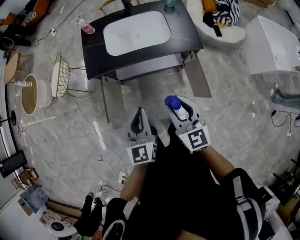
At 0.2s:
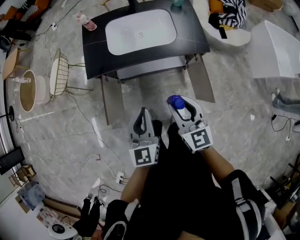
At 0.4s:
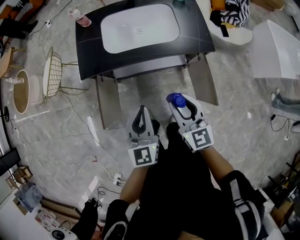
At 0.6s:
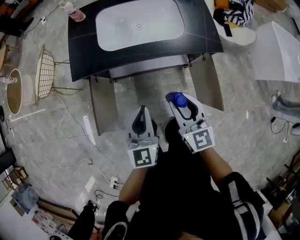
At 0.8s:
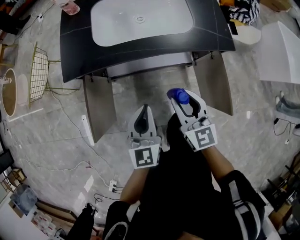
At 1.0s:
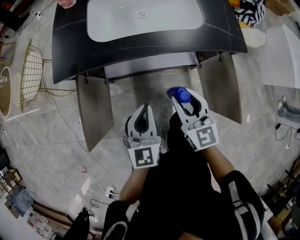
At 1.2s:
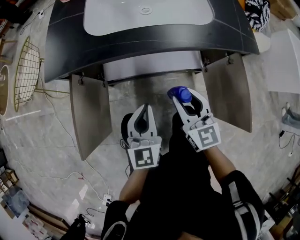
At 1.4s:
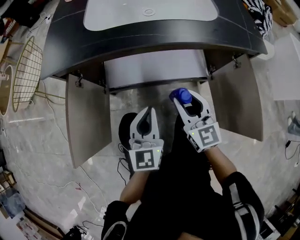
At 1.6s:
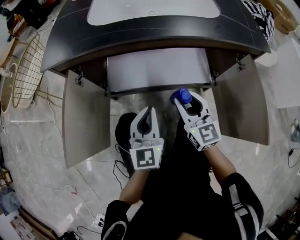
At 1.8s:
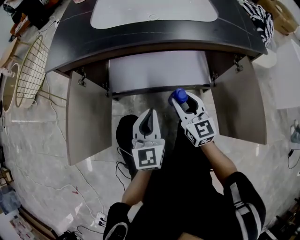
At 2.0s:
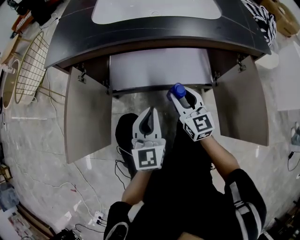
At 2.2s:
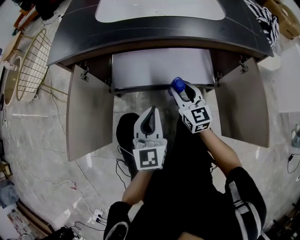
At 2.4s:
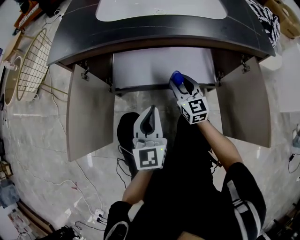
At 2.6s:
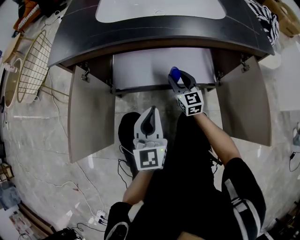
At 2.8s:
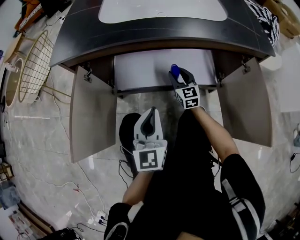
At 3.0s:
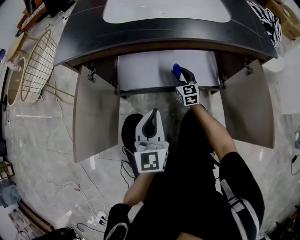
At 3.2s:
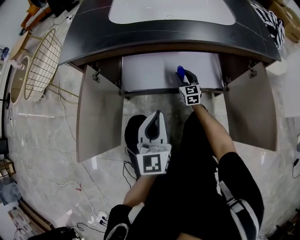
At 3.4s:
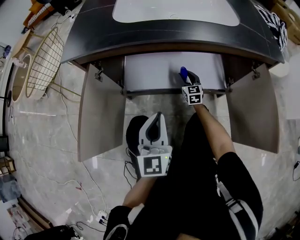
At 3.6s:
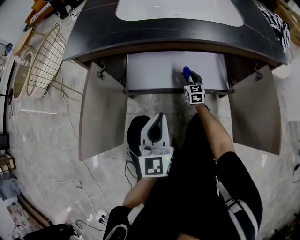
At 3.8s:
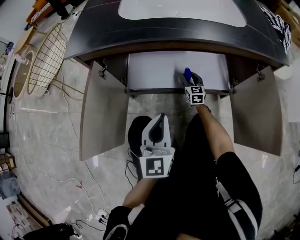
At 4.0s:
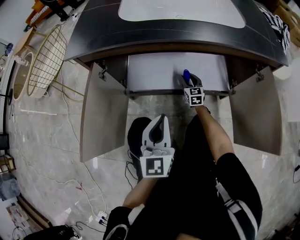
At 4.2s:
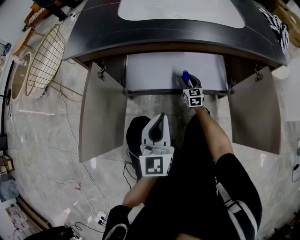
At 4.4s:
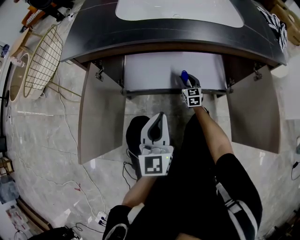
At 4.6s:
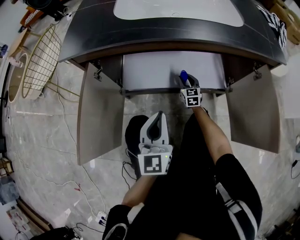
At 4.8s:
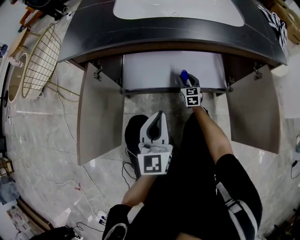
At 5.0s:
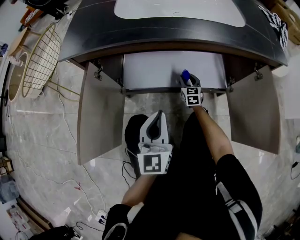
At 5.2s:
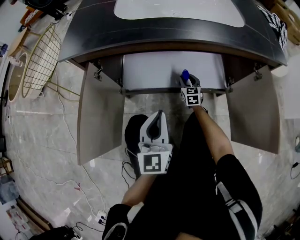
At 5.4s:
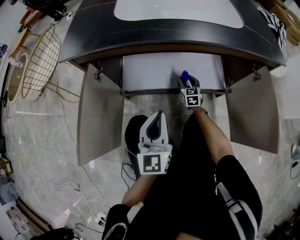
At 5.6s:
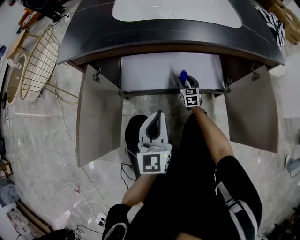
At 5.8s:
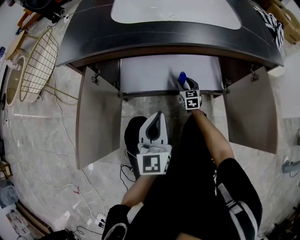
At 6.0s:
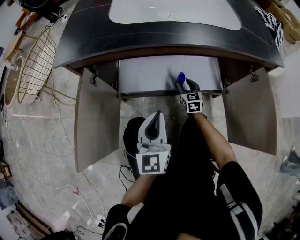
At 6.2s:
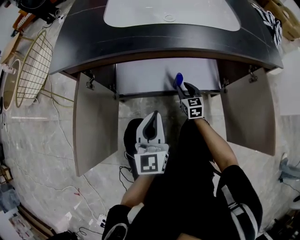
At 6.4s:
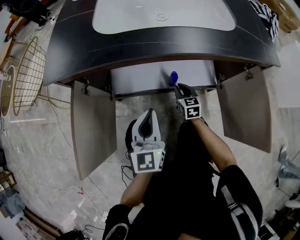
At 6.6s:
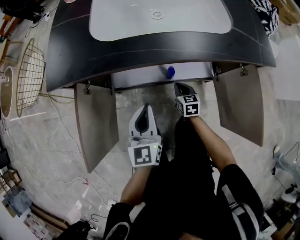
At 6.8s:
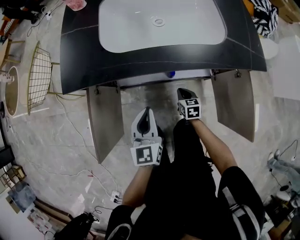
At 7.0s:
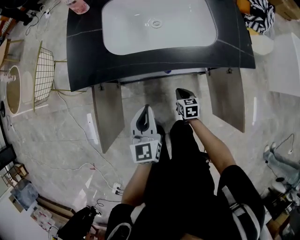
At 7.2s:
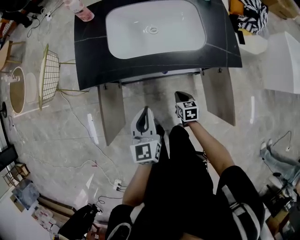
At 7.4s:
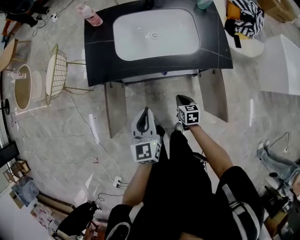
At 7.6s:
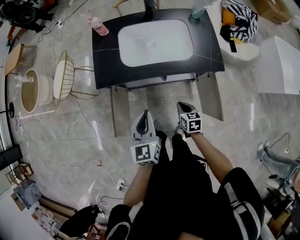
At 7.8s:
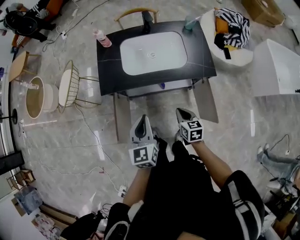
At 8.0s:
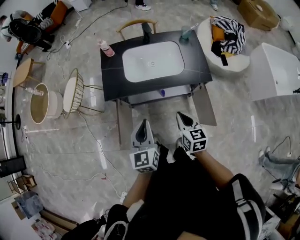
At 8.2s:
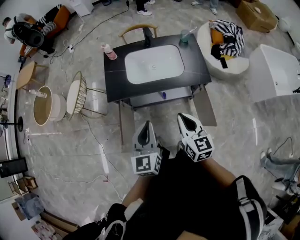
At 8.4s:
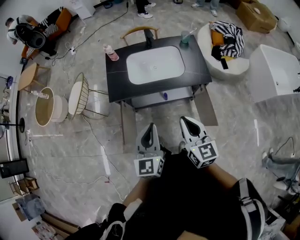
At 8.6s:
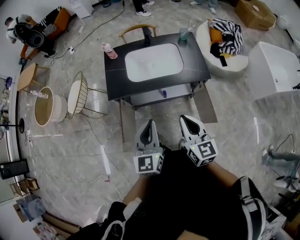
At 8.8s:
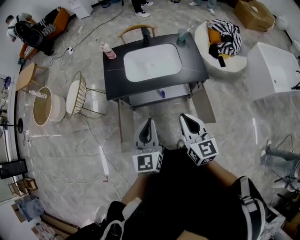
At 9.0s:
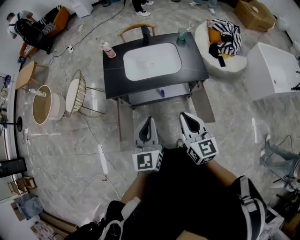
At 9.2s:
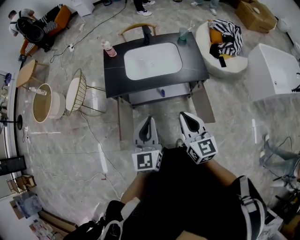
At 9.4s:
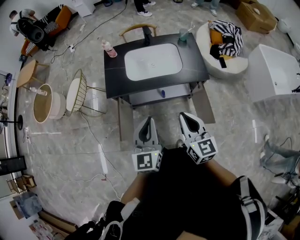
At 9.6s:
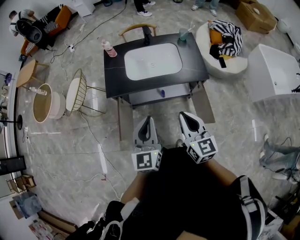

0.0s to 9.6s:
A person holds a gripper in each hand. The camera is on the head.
0.0s to 1.6s: Both grippers travel together downward, approximately 50 cm.
1.6s to 3.2s: The right gripper is displaced downward and forward by approximately 25 cm.
3.2s to 4.8s: The right gripper travels downward by some 5 cm.
4.8s to 6.4s: The right gripper goes roughly 10 cm backward and upward, and closes up.
6.4s to 8.0s: Both grippers move upward, some 50 cm.
8.0s to 9.6s: The left gripper shifts about 10 cm upward and backward. Meanwhile the right gripper goes about 15 cm upward and backward.

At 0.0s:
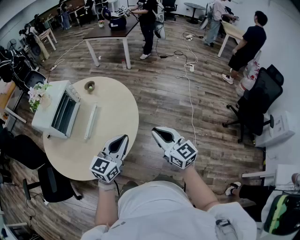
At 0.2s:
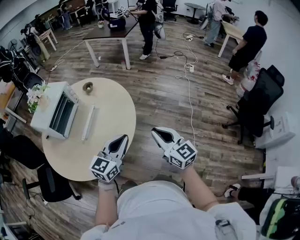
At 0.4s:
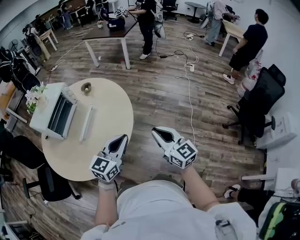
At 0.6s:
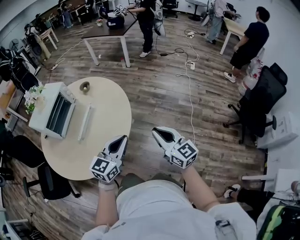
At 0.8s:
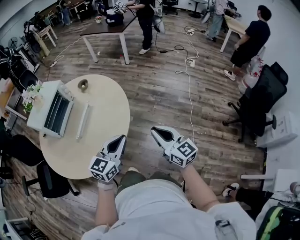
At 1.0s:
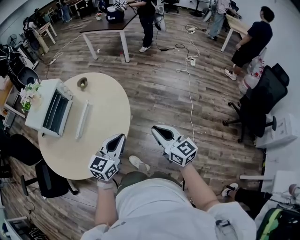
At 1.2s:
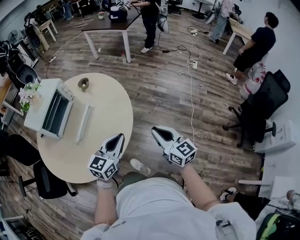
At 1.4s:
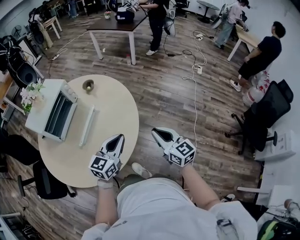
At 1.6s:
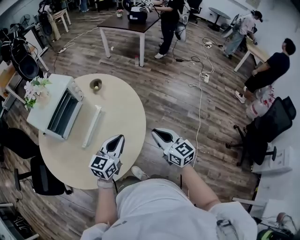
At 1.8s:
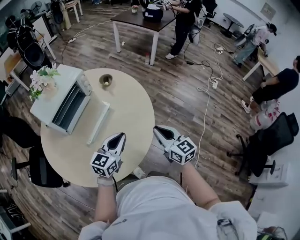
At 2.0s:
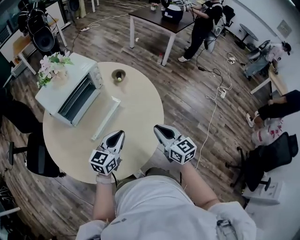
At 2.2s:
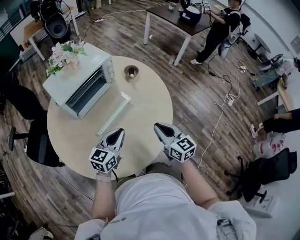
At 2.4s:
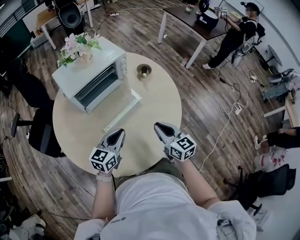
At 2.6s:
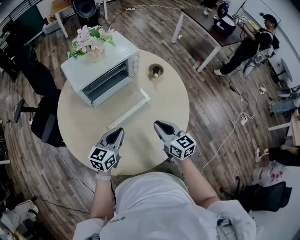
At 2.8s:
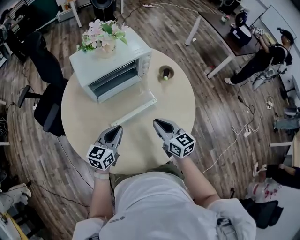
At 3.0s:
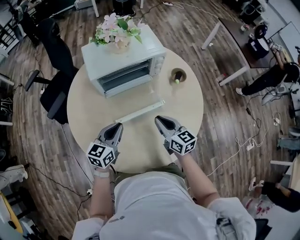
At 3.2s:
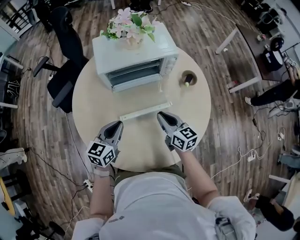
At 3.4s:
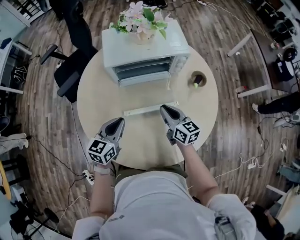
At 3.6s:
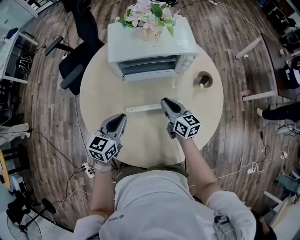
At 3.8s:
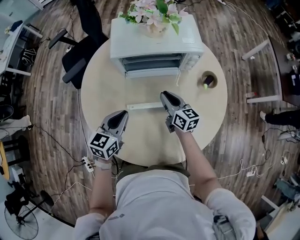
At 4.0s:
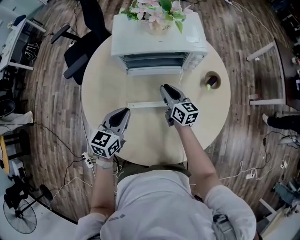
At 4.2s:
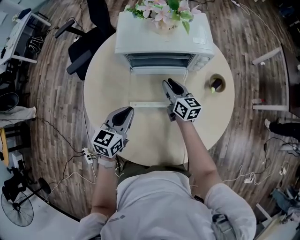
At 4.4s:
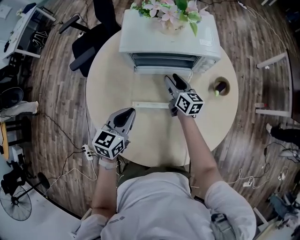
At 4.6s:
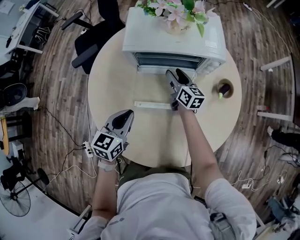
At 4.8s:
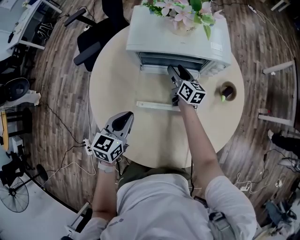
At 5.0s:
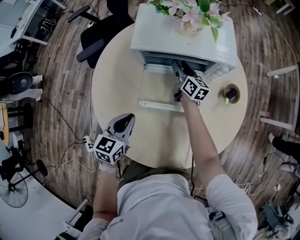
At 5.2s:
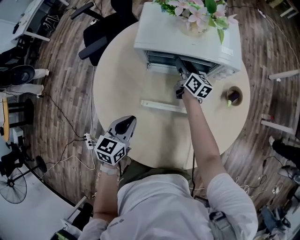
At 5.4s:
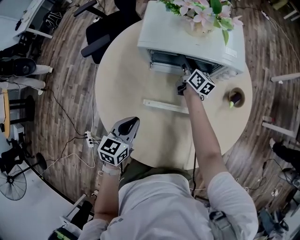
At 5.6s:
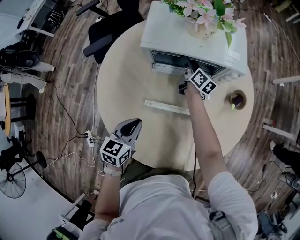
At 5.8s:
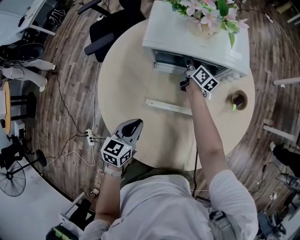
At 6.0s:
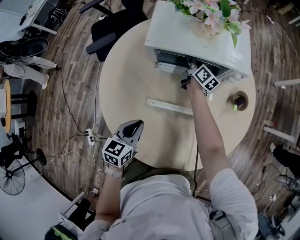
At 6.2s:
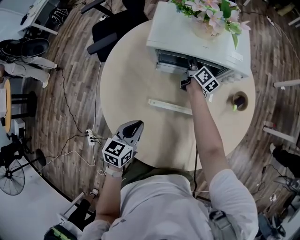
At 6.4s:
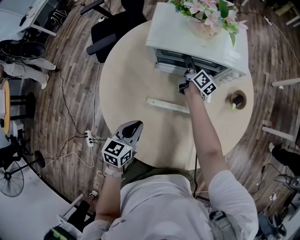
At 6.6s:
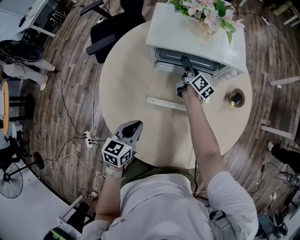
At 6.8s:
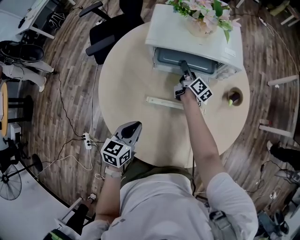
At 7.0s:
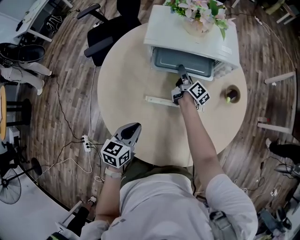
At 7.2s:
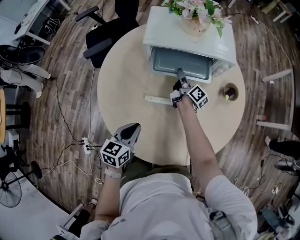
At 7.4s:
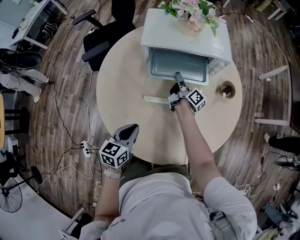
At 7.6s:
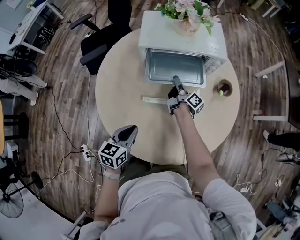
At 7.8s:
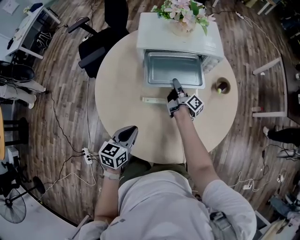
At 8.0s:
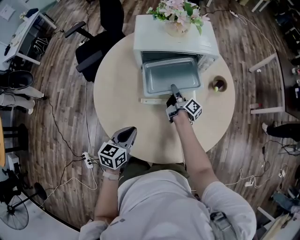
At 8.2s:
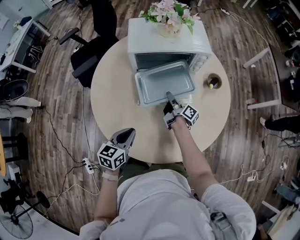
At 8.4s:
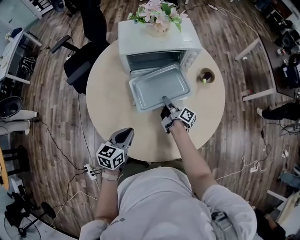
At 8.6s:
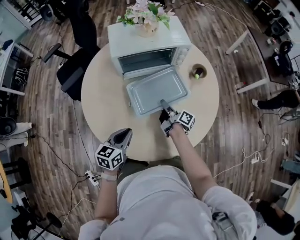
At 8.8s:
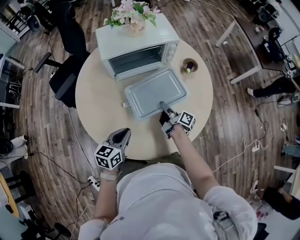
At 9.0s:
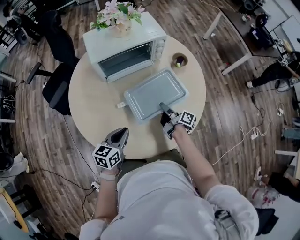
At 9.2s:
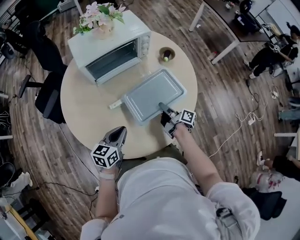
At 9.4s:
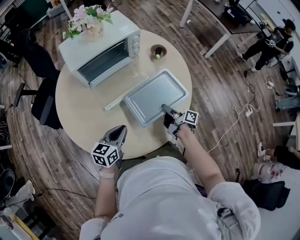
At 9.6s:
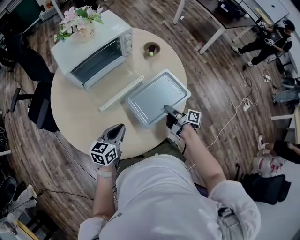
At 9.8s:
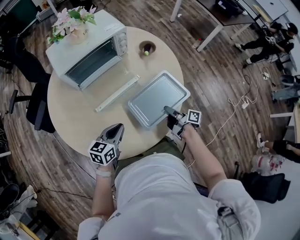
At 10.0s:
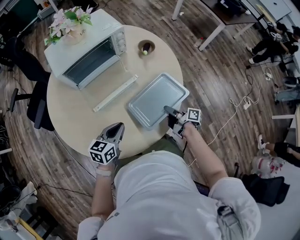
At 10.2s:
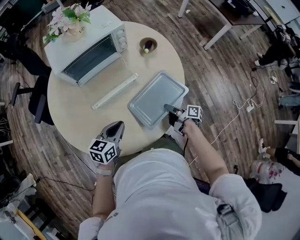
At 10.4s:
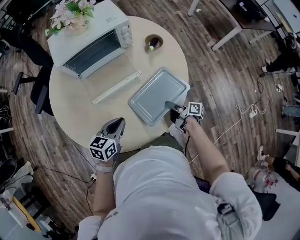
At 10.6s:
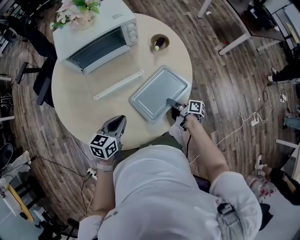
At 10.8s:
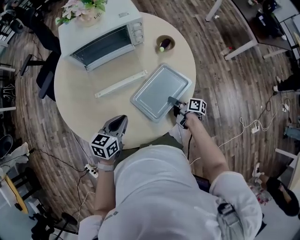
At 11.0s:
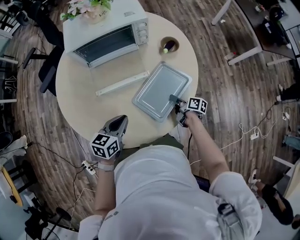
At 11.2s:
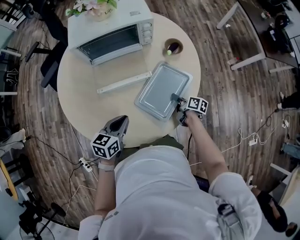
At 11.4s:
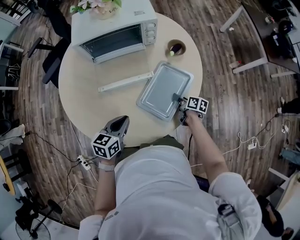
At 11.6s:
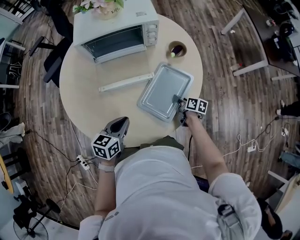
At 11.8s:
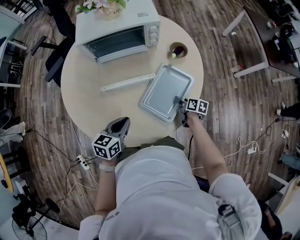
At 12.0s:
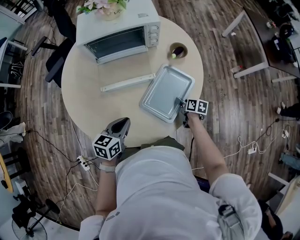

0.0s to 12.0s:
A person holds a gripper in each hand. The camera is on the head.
0.0s to 1.6s: The left gripper is displaced forward and downward by some 15 cm. Meanwhile the right gripper is displaced forward by approximately 15 cm.
1.6s to 3.0s: The left gripper changes place by about 25 cm, and turns by approximately 50 degrees. Meanwhile the right gripper ends up approximately 35 cm from where it was, and turns by approximately 50 degrees.
3.0s to 4.4s: The left gripper rotates roughly 20 degrees, while the right gripper shifts approximately 20 cm forward, and opens up.
4.4s to 6.0s: The right gripper travels forward by some 15 cm, and swivels some 20 degrees, while the left gripper ends up about 10 cm from where it was.
6.0s to 7.6s: The left gripper heads backward, covering roughly 5 cm. The right gripper is displaced backward by about 15 cm, changes its angle by about 30 degrees, and closes.
7.6s to 9.0s: The left gripper turns by some 30 degrees; the right gripper goes about 25 cm backward and to the right.
9.0s to 10.4s: The right gripper is displaced to the right and downward by approximately 20 cm. Meanwhile the left gripper moves to the right, approximately 10 cm.
10.4s to 12.0s: The right gripper travels forward, downward and to the right by roughly 10 cm, and points its fingers some 30 degrees further downward.

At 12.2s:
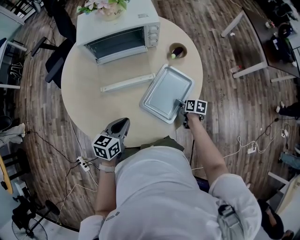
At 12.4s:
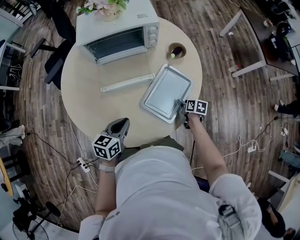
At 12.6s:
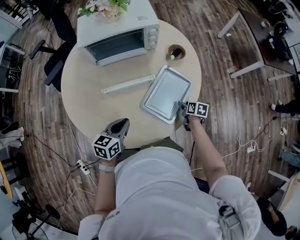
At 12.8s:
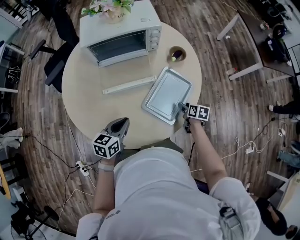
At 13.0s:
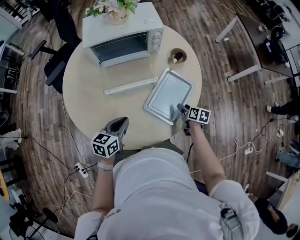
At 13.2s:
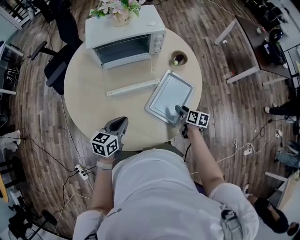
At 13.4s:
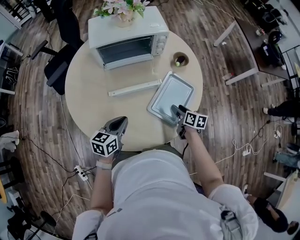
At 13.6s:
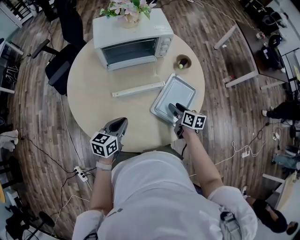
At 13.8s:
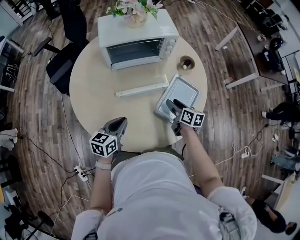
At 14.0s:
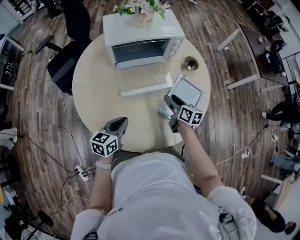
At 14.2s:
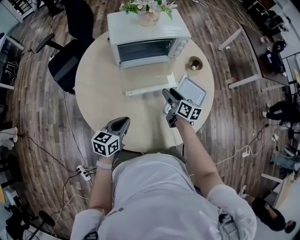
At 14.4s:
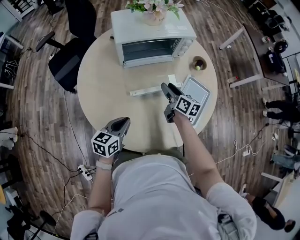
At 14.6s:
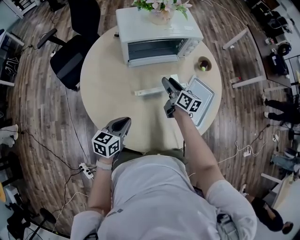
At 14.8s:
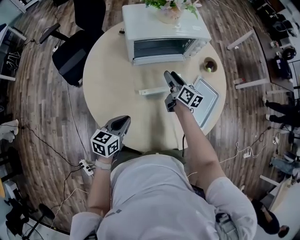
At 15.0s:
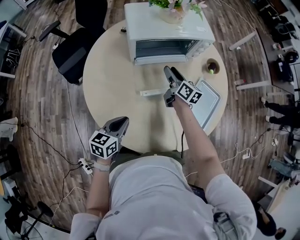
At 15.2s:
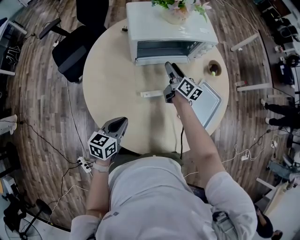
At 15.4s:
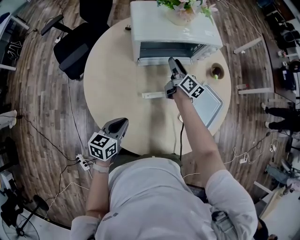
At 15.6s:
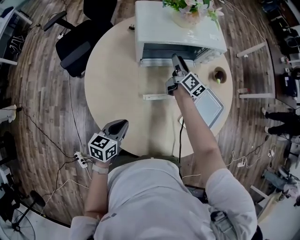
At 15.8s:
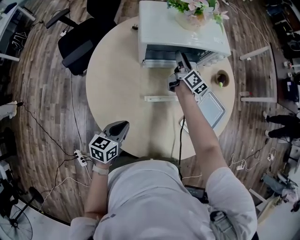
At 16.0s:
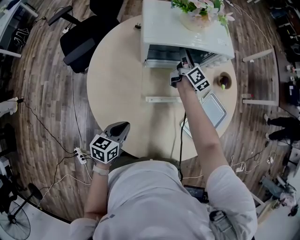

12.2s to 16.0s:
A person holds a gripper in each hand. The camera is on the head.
12.2s to 13.4s: The left gripper is displaced to the left by approximately 5 cm; the right gripper moves upward and to the left, about 15 cm.
13.4s to 14.8s: The left gripper moves to the left, some 15 cm; the right gripper goes approximately 30 cm to the left and forward, and rotates roughly 20 degrees.
14.8s to 16.0s: The right gripper moves forward, about 15 cm.
